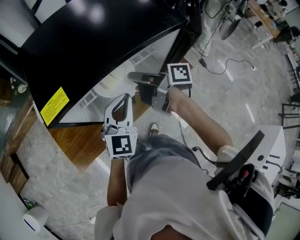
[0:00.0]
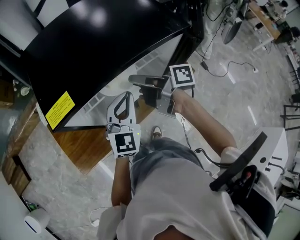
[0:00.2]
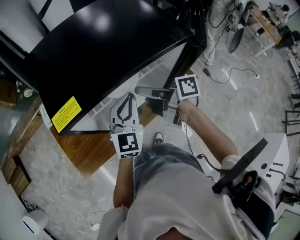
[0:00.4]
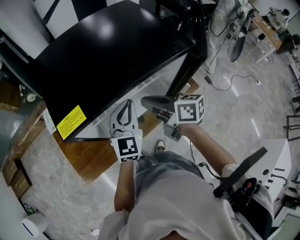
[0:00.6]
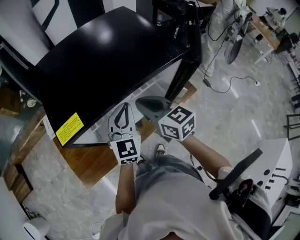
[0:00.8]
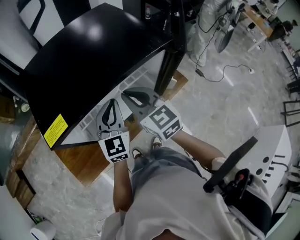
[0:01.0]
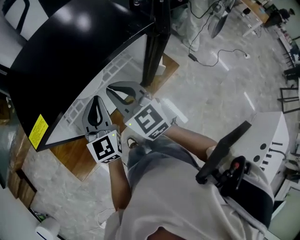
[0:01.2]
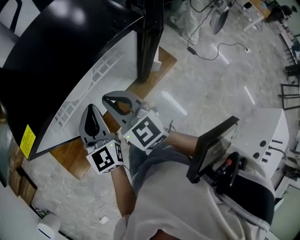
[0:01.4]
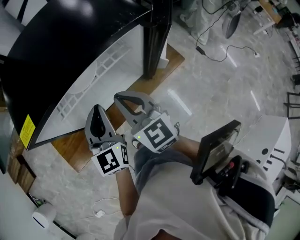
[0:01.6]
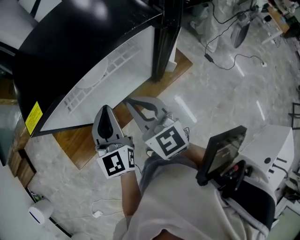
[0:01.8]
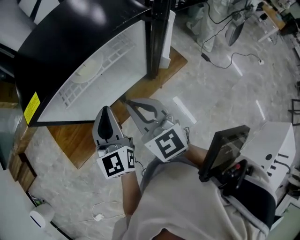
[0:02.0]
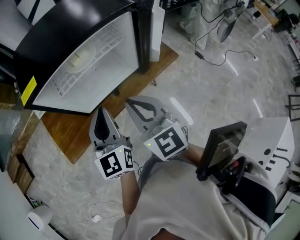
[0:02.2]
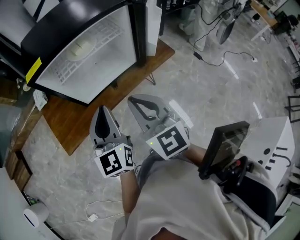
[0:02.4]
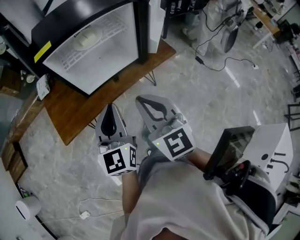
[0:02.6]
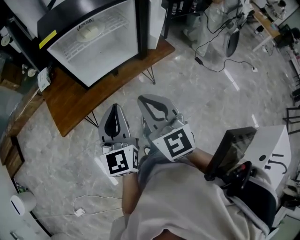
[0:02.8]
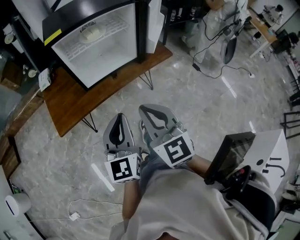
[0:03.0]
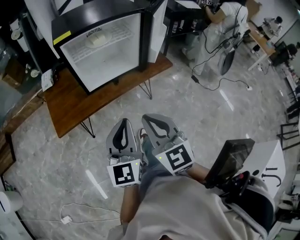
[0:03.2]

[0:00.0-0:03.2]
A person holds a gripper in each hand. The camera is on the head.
0:00.0 to 0:01.6: The left gripper changes its angle by about 30 degrees. The right gripper goes some 5 cm backward, rolls counterclockwise, seen from behind, by some 80 degrees, and opens and closes again.
0:01.6 to 0:03.2: The grippers both shift backward and upward by approximately 30 cm.

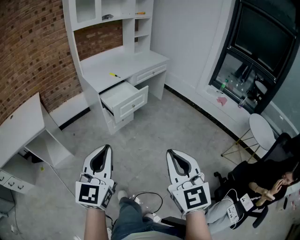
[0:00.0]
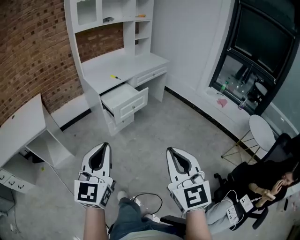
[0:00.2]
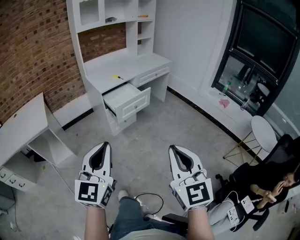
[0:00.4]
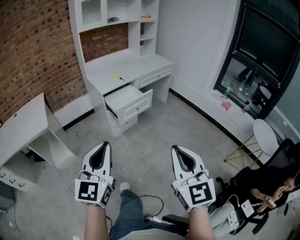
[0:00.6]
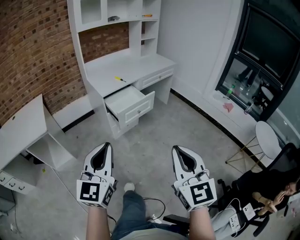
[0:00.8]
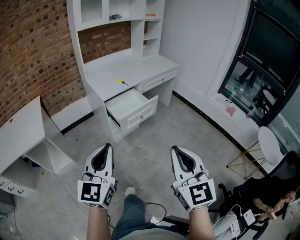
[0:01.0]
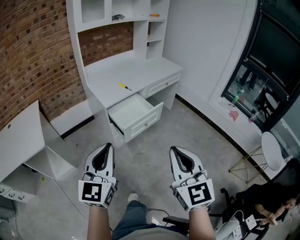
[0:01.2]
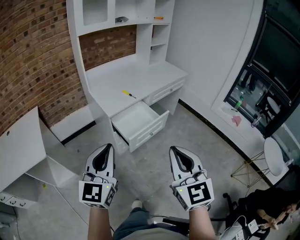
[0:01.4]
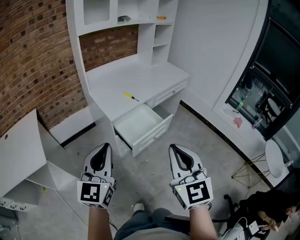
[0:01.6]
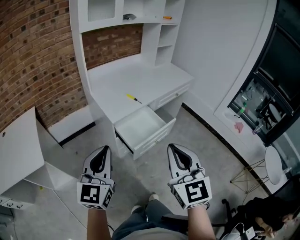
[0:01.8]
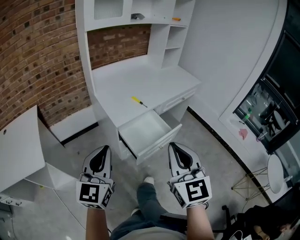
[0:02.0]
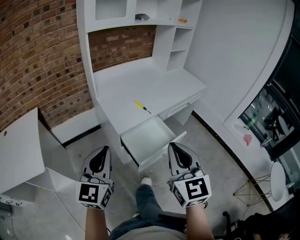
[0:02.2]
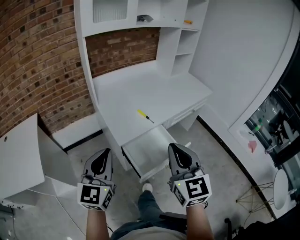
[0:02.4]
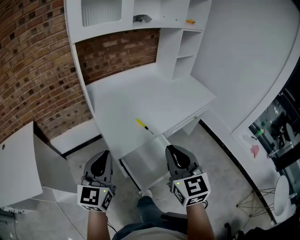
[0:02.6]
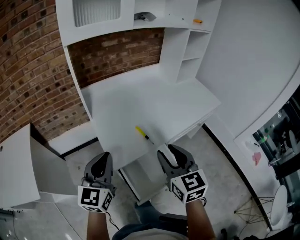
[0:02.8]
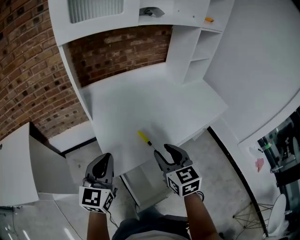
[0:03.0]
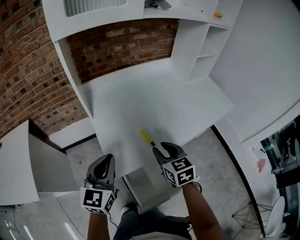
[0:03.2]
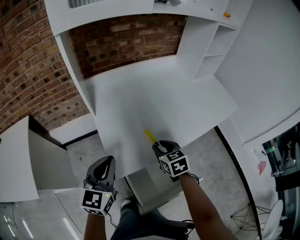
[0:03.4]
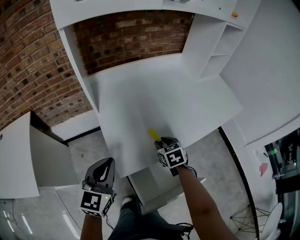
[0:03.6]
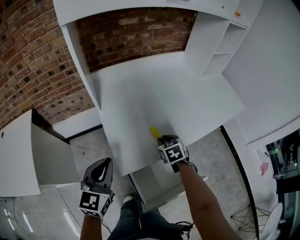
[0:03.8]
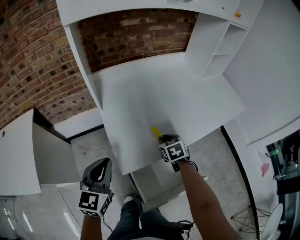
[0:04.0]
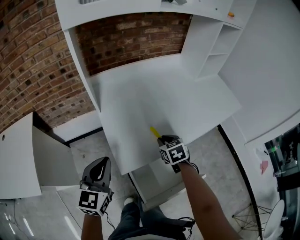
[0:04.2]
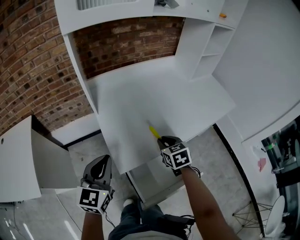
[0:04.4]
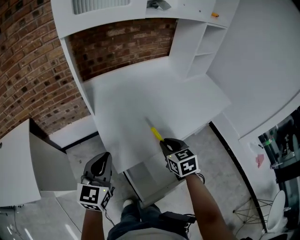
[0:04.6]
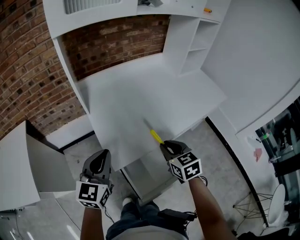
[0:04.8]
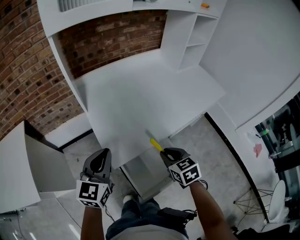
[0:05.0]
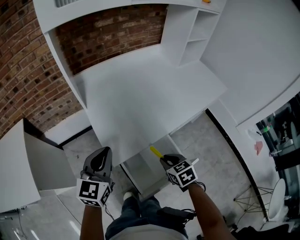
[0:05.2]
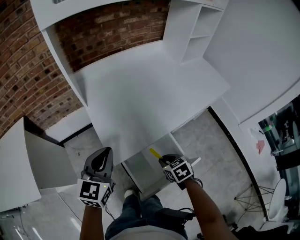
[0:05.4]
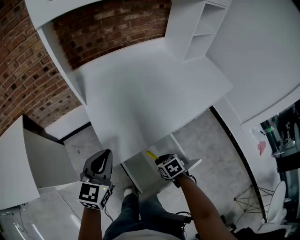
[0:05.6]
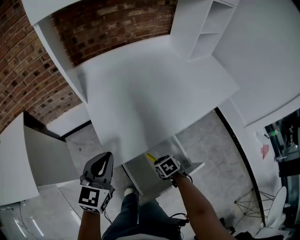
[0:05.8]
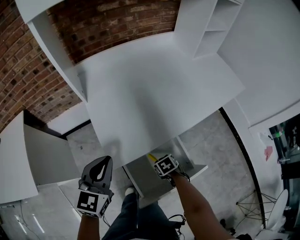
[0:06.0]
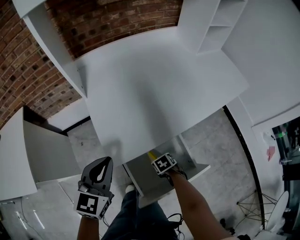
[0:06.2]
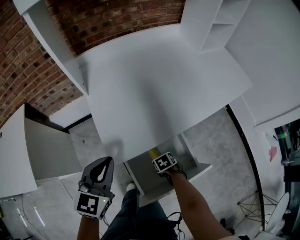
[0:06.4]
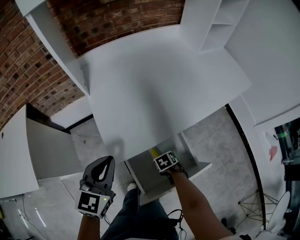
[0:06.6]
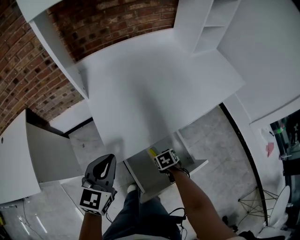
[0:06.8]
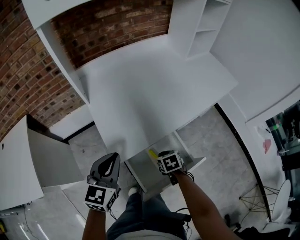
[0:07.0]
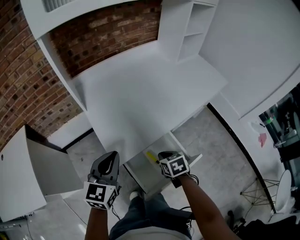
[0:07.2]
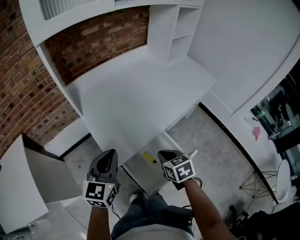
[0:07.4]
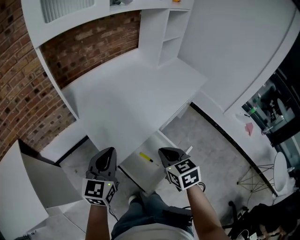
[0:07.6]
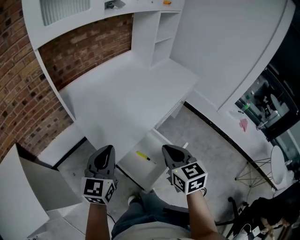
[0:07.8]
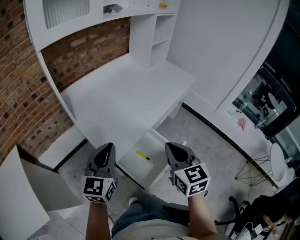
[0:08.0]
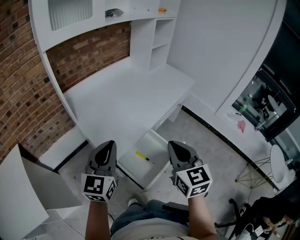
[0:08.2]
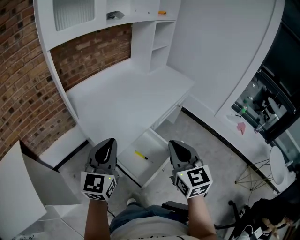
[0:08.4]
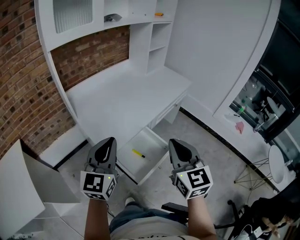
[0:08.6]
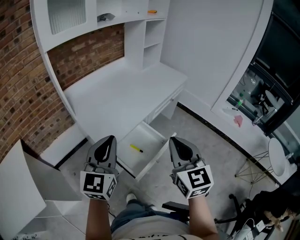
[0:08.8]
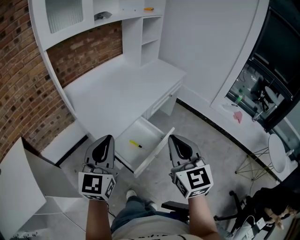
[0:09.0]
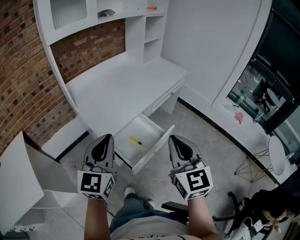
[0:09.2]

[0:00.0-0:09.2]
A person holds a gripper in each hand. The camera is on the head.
0:00.0 to 0:01.6: The two grippers go about 35 cm forward and to the left.
0:01.6 to 0:03.0: The two grippers travel together, forward, approximately 50 cm. The right gripper turns by approximately 30 degrees, and opens.
0:03.0 to 0:04.6: The right gripper is displaced downward by some 10 cm, and closes.
0:04.6 to 0:06.2: The right gripper moves downward, some 30 cm, and points its fingers approximately 40 degrees further downward. Meanwhile the left gripper travels downward by some 5 cm.
0:06.2 to 0:07.6: The left gripper shifts approximately 5 cm upward. Meanwhile the right gripper heads upward, covering about 35 cm, and angles its fingers upward, by about 40 degrees.
0:07.6 to 0:09.2: Both grippers travel together backward, upward and to the right, roughly 25 cm. The right gripper tips its fingers upward by some 30 degrees.

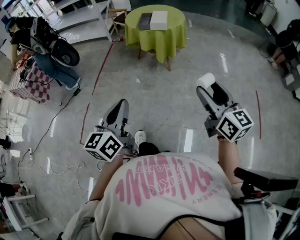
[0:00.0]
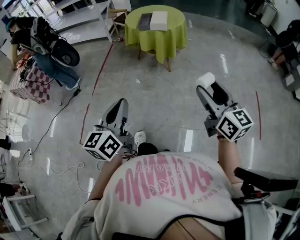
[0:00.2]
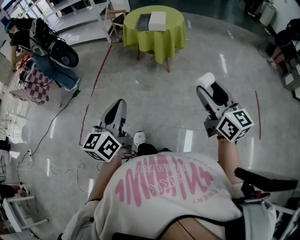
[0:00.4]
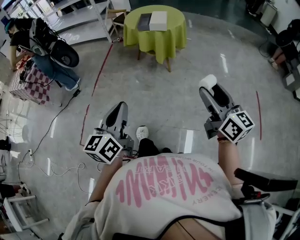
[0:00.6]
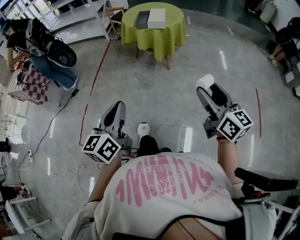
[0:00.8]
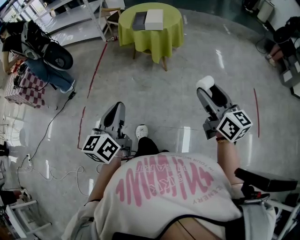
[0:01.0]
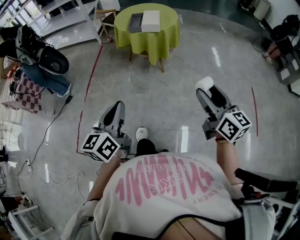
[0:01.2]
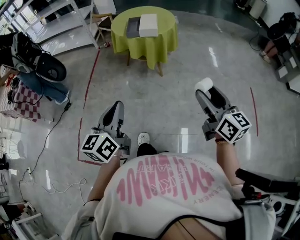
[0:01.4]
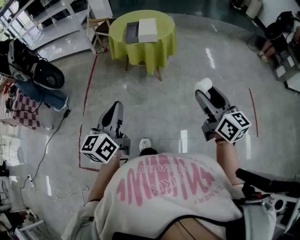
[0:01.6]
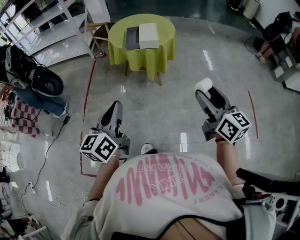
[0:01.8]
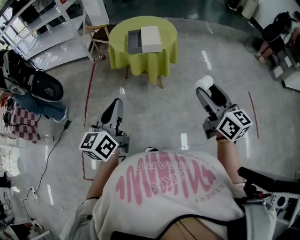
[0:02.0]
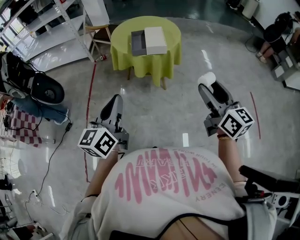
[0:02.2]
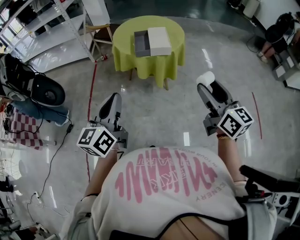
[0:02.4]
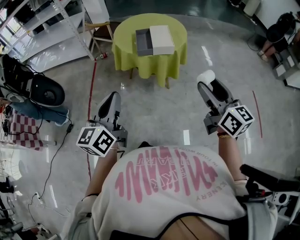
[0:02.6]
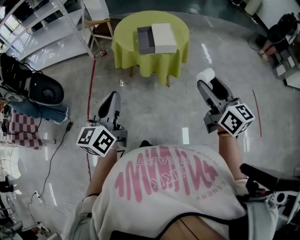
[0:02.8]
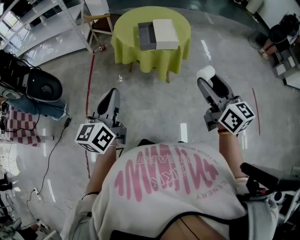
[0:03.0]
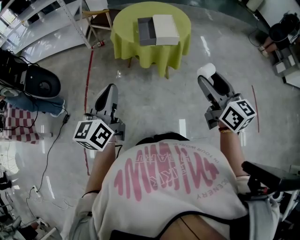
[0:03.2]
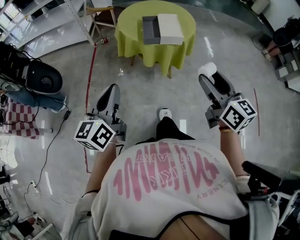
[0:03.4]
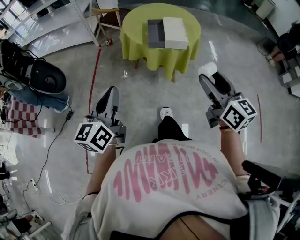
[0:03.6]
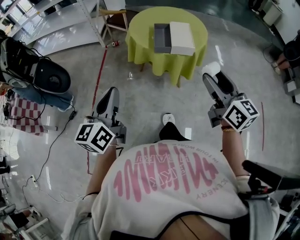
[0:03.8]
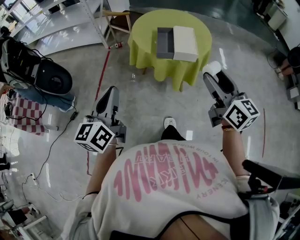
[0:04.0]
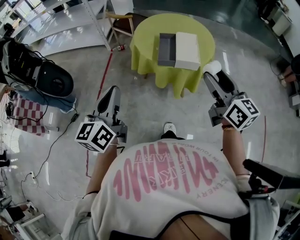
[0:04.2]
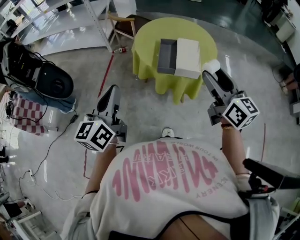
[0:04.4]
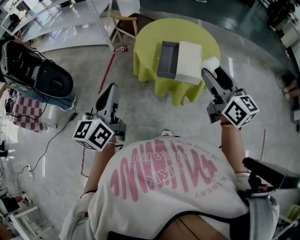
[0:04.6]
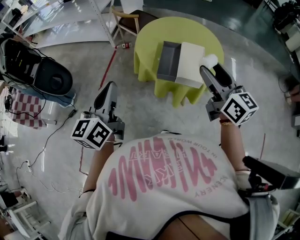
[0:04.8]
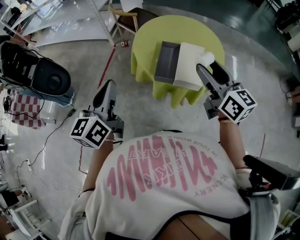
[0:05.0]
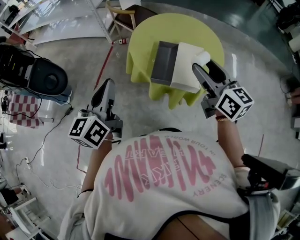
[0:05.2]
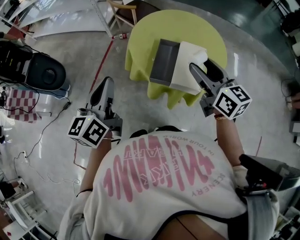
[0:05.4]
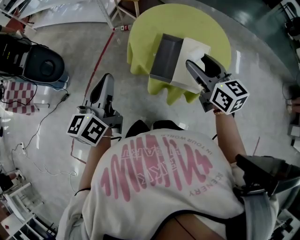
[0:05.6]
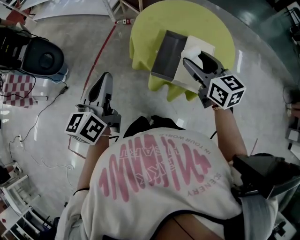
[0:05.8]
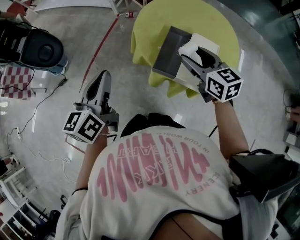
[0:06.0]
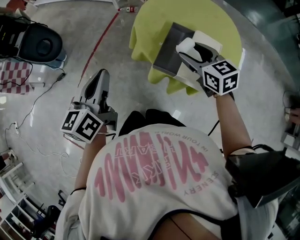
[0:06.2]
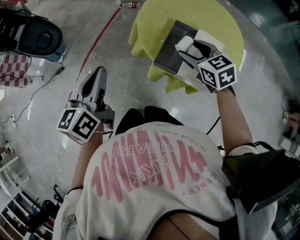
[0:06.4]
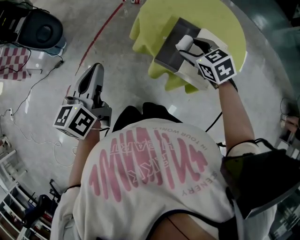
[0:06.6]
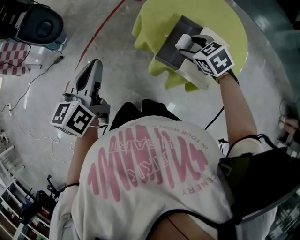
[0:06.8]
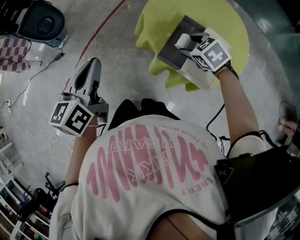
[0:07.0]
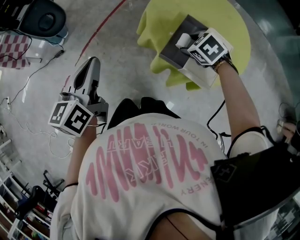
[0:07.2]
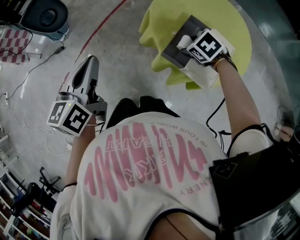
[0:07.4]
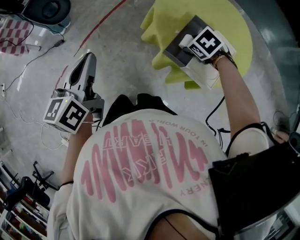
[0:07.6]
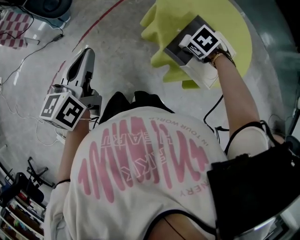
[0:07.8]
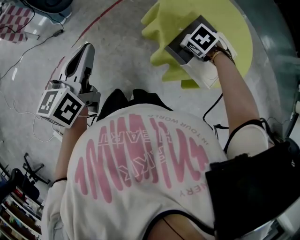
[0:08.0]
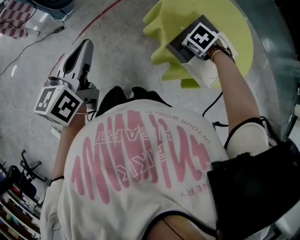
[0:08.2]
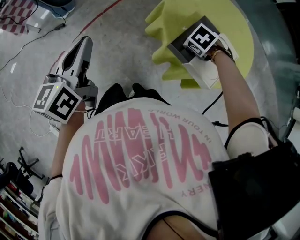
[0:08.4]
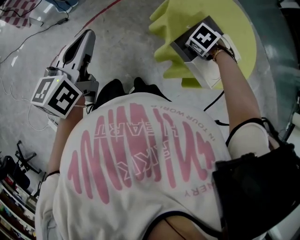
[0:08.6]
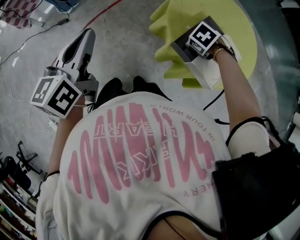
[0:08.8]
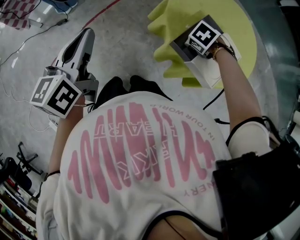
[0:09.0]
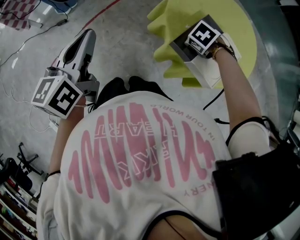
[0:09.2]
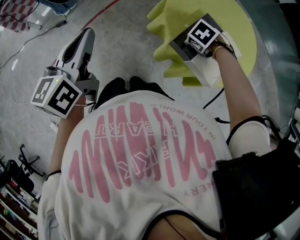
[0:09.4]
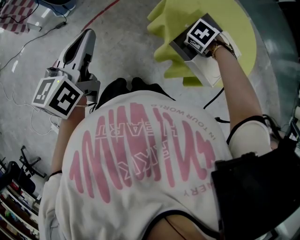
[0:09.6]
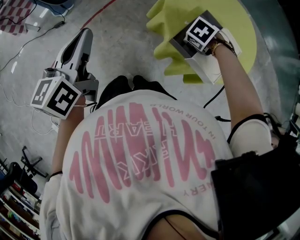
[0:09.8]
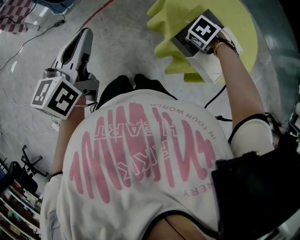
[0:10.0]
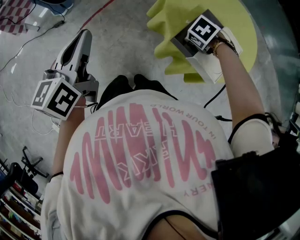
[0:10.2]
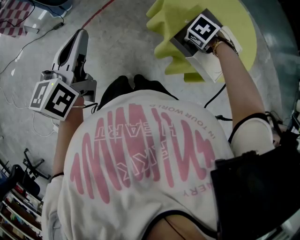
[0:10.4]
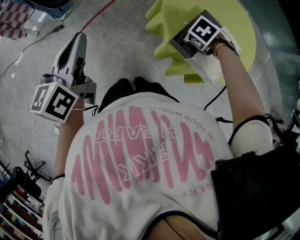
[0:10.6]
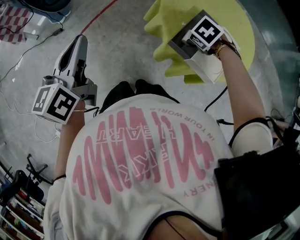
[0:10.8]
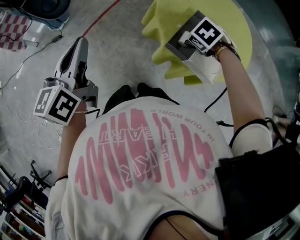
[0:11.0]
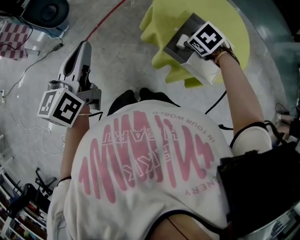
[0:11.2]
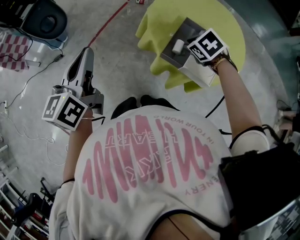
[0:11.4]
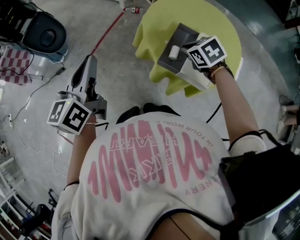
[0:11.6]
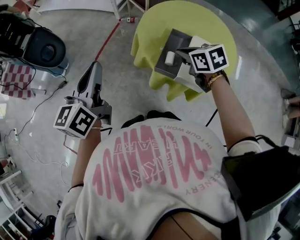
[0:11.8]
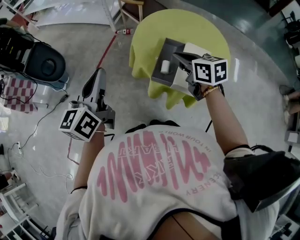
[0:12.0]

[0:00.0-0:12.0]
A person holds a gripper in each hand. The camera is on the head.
0:00.0 to 0:01.6: Both grippers travel together forward, some 20 cm.
0:01.6 to 0:03.0: Both grippers move forward and to the left, roughly 30 cm.
0:03.0 to 0:04.4: The grippers both shift forward by roughly 20 cm.
0:04.4 to 0:06.0: The left gripper goes roughly 20 cm forward and downward. Meanwhile the right gripper heads forward and downward, covering about 30 cm, and rotates some 30 degrees.
0:06.0 to 0:07.6: The left gripper changes place by roughly 10 cm; the right gripper goes some 15 cm downward, and tilts its fingers some 50 degrees downward.
0:07.6 to 0:09.0: The right gripper travels downward by about 5 cm.
0:09.0 to 0:10.4: Both grippers stay put.
0:10.4 to 0:12.0: The left gripper shifts by approximately 10 cm, and rotates approximately 20 degrees, while the right gripper moves upward, approximately 20 cm, points its fingers roughly 60 degrees further upward, and closes.
